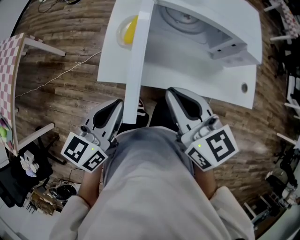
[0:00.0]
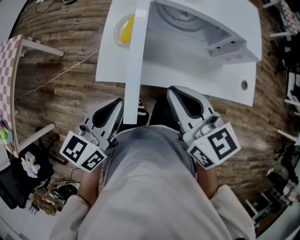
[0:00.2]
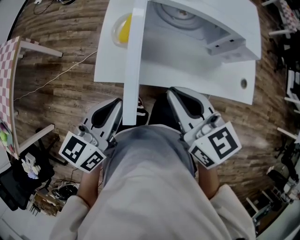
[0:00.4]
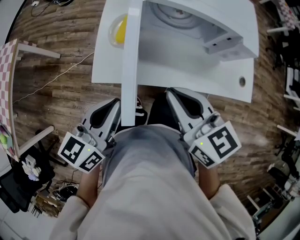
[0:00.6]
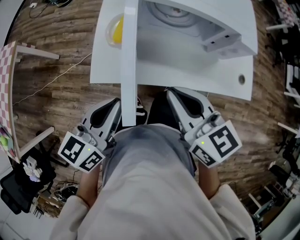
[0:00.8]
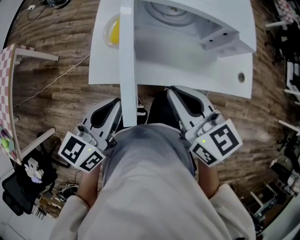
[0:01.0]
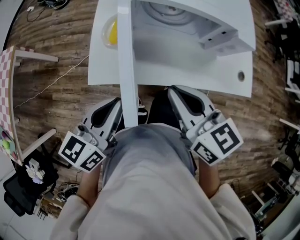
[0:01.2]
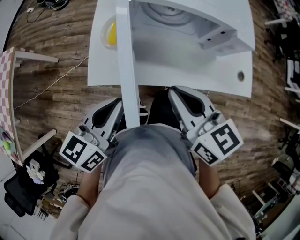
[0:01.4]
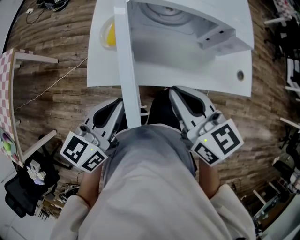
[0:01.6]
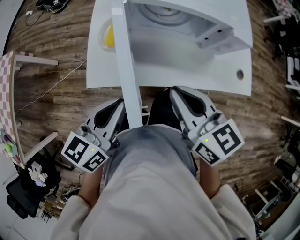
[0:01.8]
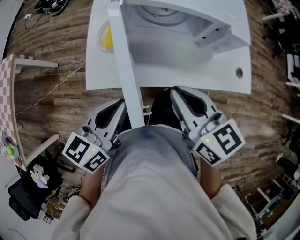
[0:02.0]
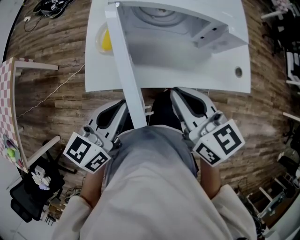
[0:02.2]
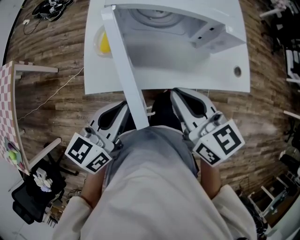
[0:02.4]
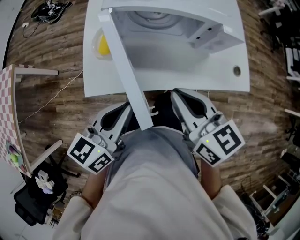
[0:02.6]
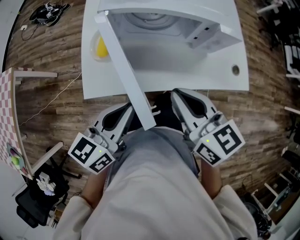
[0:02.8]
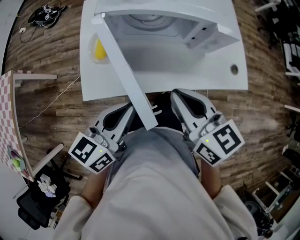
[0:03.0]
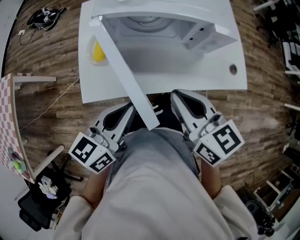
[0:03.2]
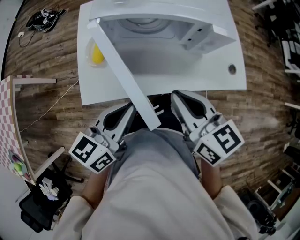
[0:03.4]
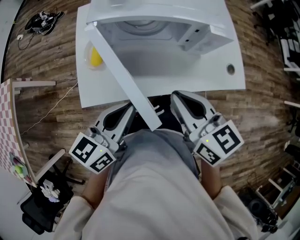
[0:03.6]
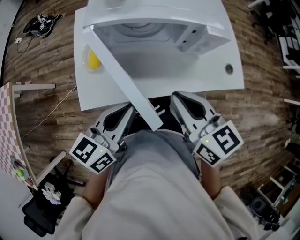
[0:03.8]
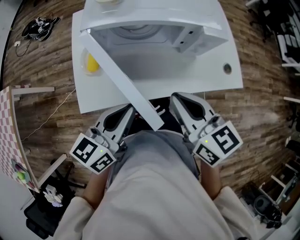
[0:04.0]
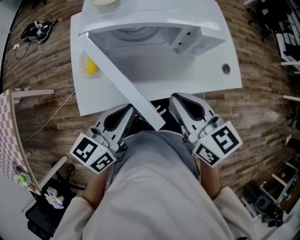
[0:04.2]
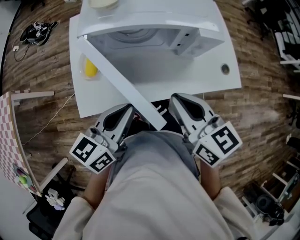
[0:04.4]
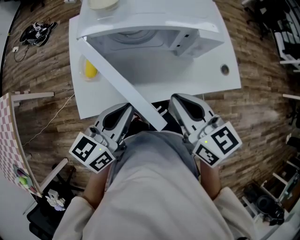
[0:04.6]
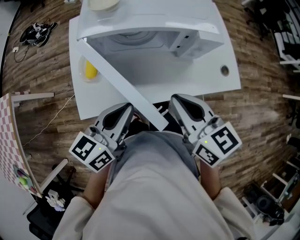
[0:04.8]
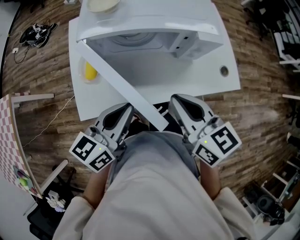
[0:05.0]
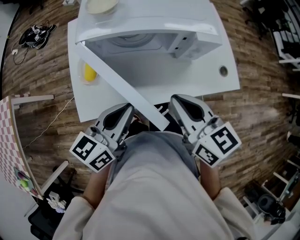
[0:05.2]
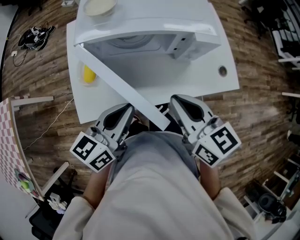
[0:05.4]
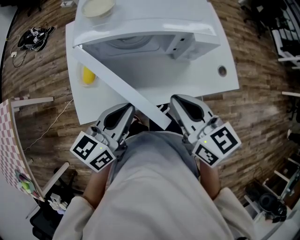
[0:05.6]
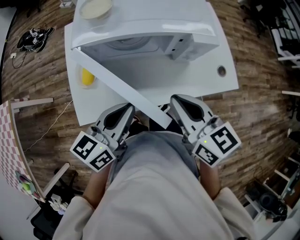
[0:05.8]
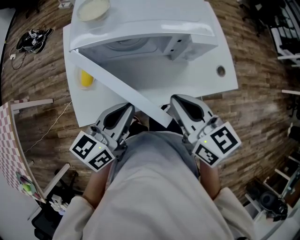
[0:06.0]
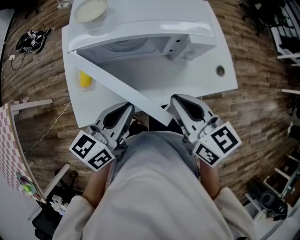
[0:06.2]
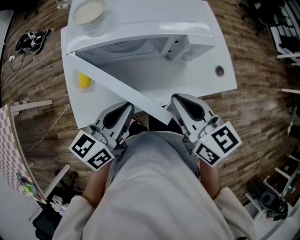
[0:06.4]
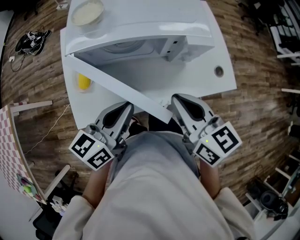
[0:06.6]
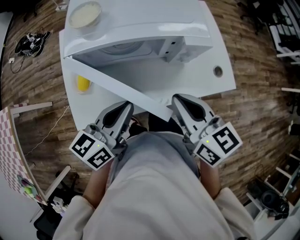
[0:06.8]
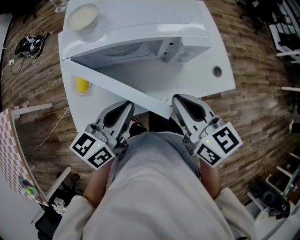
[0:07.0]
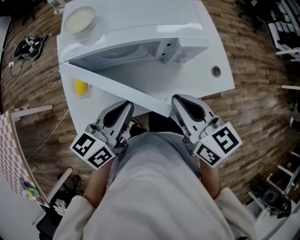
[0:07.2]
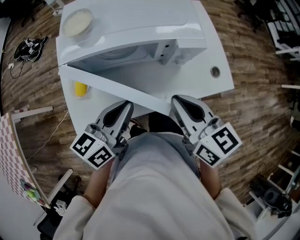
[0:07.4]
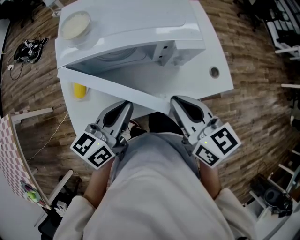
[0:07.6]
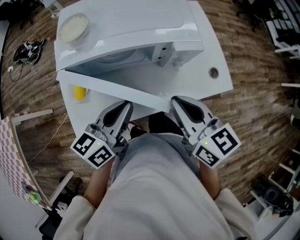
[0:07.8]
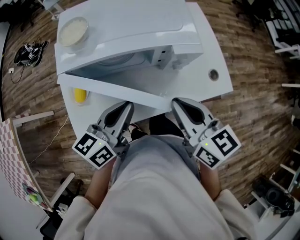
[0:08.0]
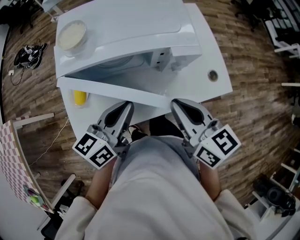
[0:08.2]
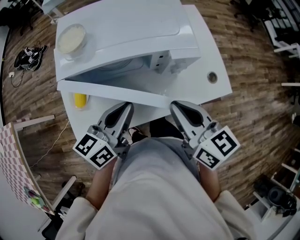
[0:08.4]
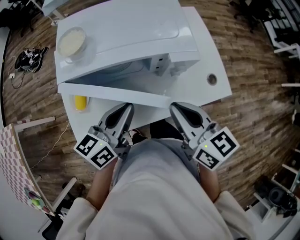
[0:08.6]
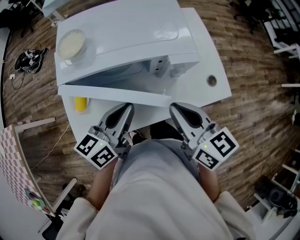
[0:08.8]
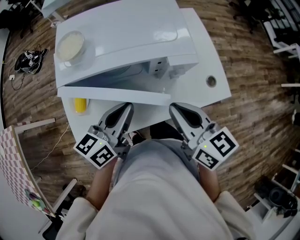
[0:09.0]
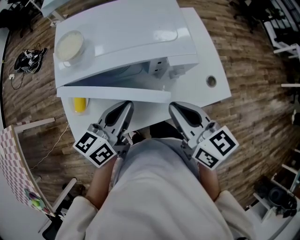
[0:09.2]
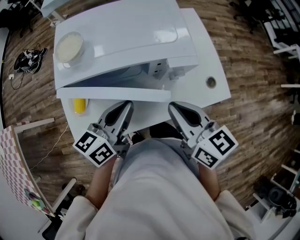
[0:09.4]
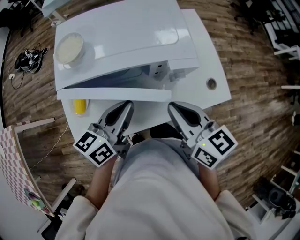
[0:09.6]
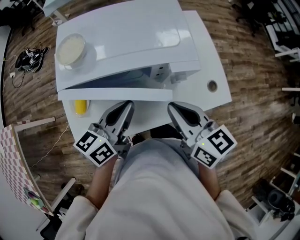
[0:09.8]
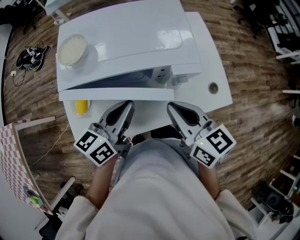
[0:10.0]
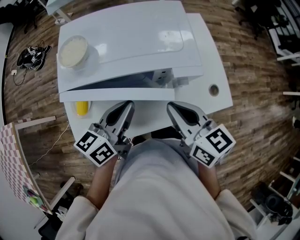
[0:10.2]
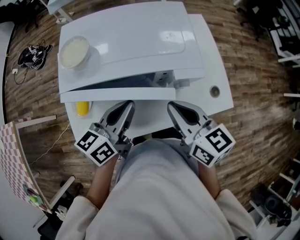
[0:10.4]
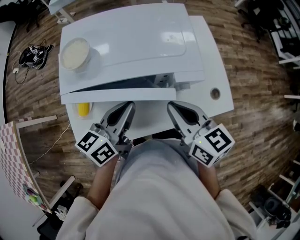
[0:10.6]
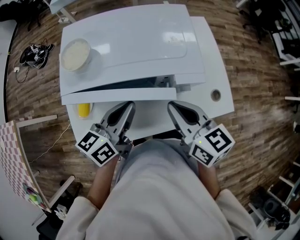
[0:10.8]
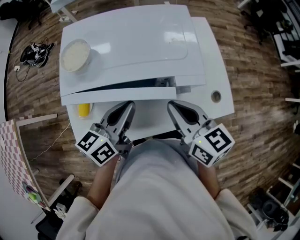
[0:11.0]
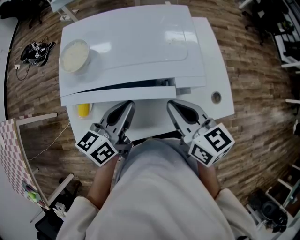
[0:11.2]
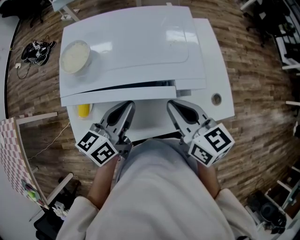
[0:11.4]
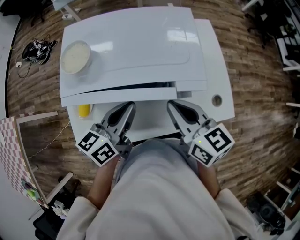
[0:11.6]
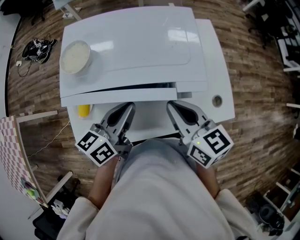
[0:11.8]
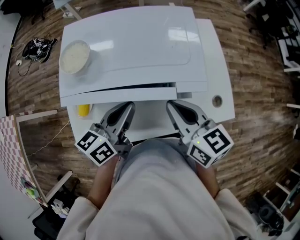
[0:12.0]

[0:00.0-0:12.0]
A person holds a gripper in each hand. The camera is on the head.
0:00.0 to 0:01.6: The right gripper heads to the right, covering roughly 5 cm.
0:01.6 to 0:03.0: The left gripper heads to the right, covering about 5 cm.
0:03.0 to 0:04.4: The grippers stay close to where they were, moving slightly.
0:04.4 to 0:06.0: The grippers make only small movements.
0:06.0 to 0:07.6: The left gripper changes place by some 5 cm.
0:07.6 to 0:09.0: There are only small adjustments of the grippers.
0:09.0 to 0:10.4: The grippers make only small movements.
0:10.4 to 0:12.0: There are only small adjustments of the grippers.

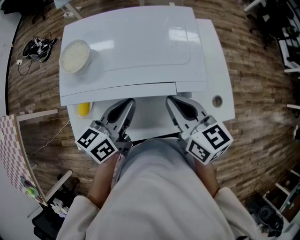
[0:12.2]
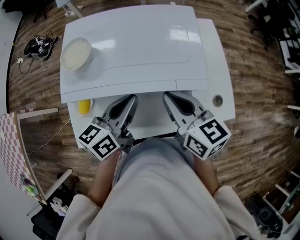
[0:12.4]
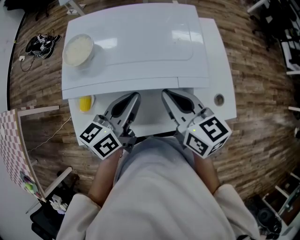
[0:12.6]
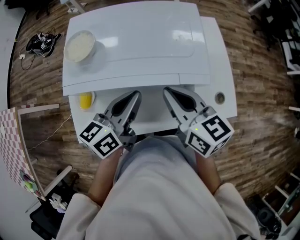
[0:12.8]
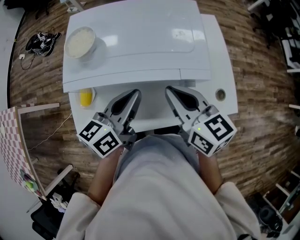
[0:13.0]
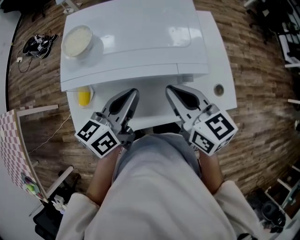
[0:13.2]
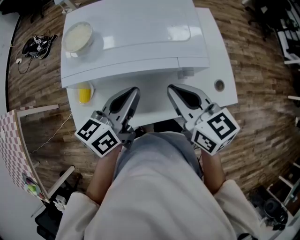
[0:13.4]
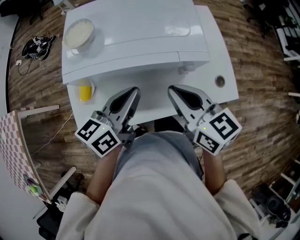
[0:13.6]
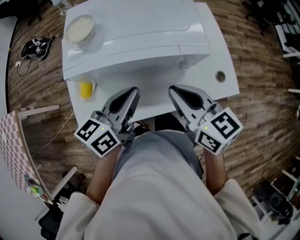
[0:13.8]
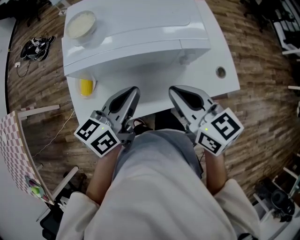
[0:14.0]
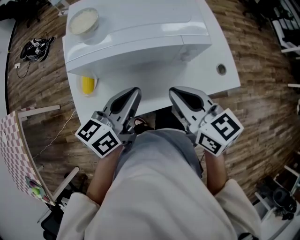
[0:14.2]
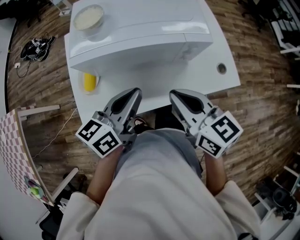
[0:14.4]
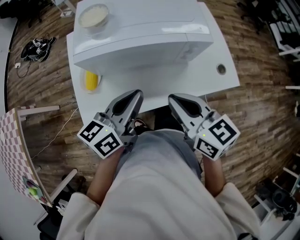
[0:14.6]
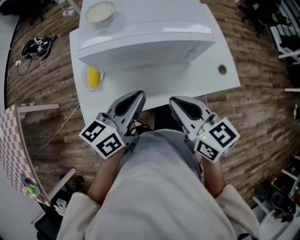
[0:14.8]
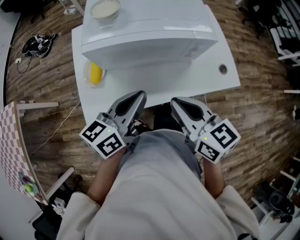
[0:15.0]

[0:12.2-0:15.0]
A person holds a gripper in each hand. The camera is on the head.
0:12.2 to 0:13.6: The left gripper ends up about 5 cm from where it was. The right gripper travels backward by some 5 cm.
0:13.6 to 0:15.0: The left gripper travels backward by roughly 10 cm; the right gripper heads backward and to the left, covering some 15 cm.

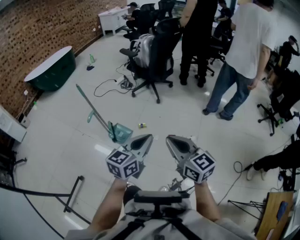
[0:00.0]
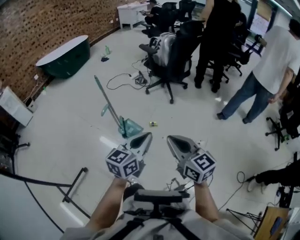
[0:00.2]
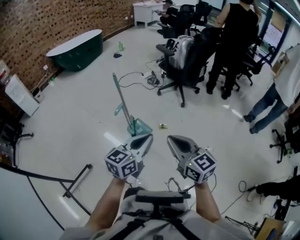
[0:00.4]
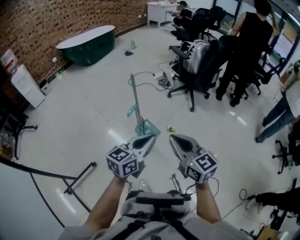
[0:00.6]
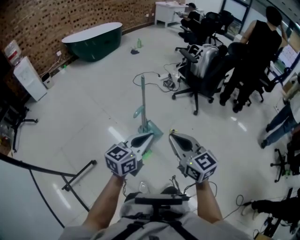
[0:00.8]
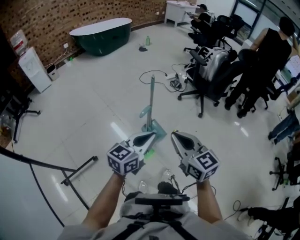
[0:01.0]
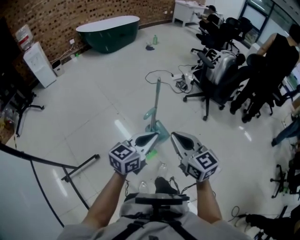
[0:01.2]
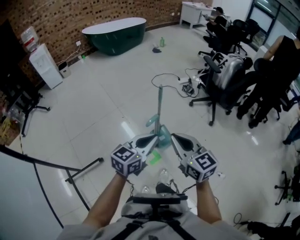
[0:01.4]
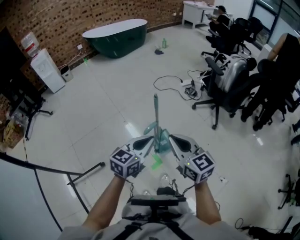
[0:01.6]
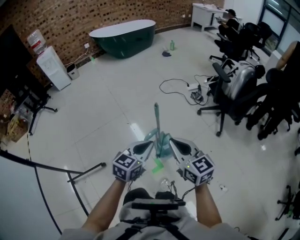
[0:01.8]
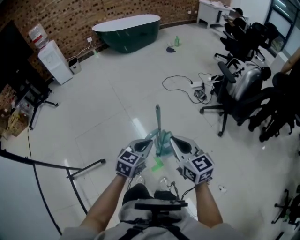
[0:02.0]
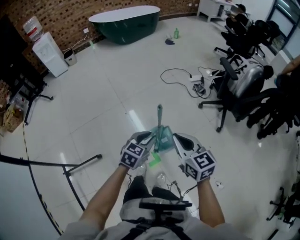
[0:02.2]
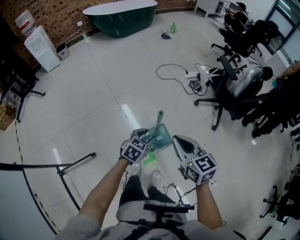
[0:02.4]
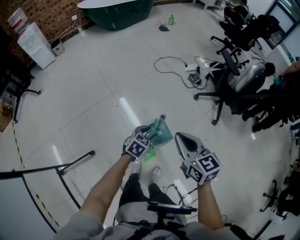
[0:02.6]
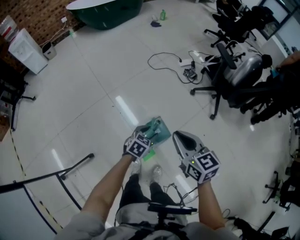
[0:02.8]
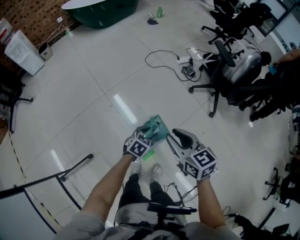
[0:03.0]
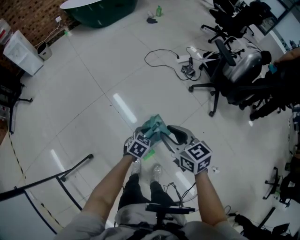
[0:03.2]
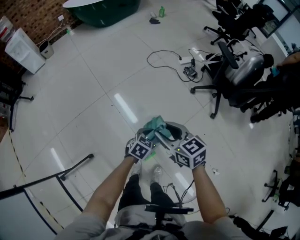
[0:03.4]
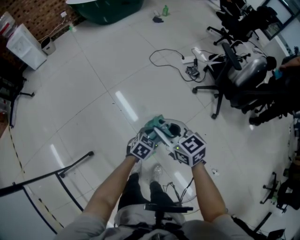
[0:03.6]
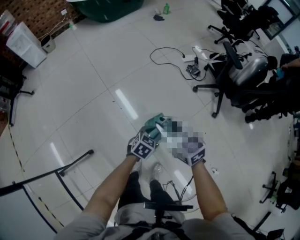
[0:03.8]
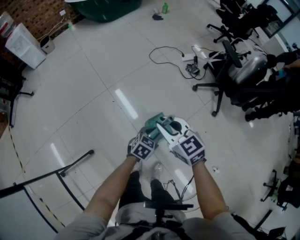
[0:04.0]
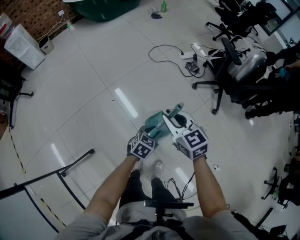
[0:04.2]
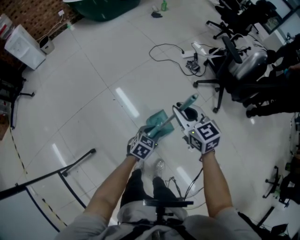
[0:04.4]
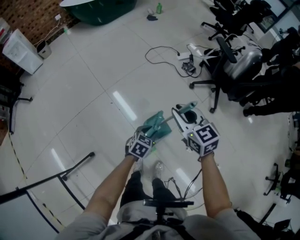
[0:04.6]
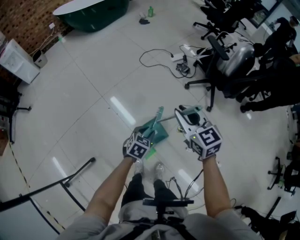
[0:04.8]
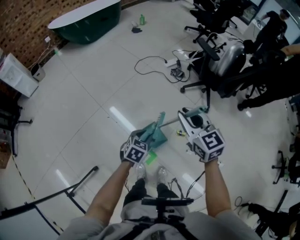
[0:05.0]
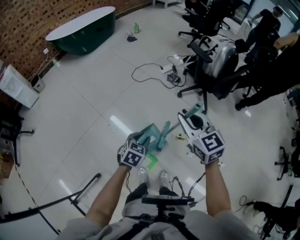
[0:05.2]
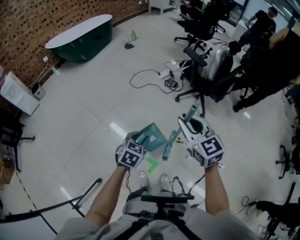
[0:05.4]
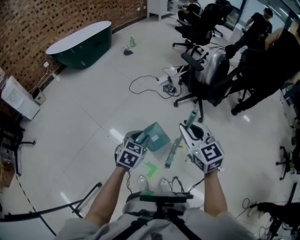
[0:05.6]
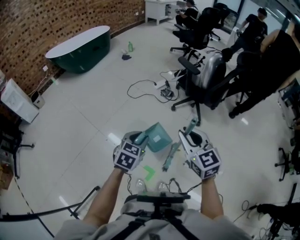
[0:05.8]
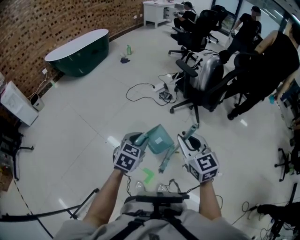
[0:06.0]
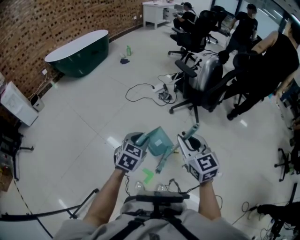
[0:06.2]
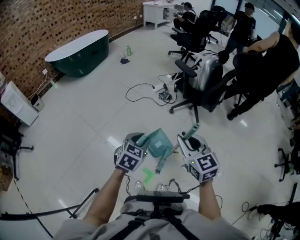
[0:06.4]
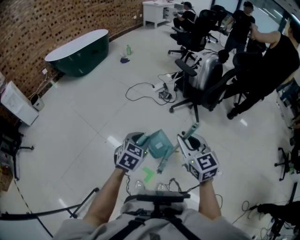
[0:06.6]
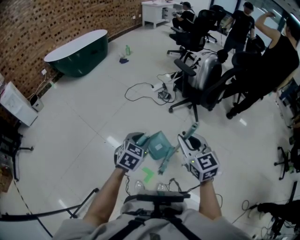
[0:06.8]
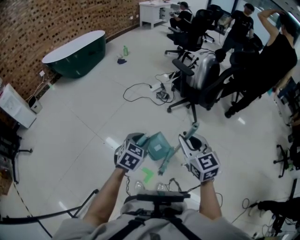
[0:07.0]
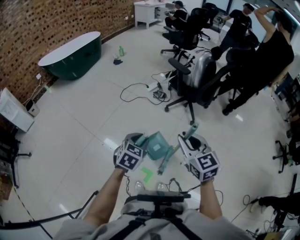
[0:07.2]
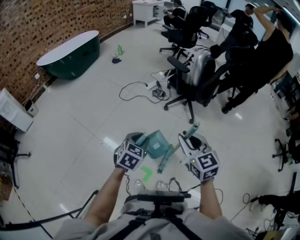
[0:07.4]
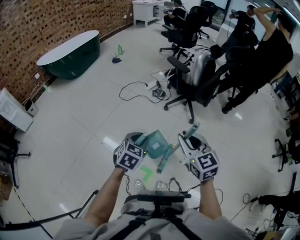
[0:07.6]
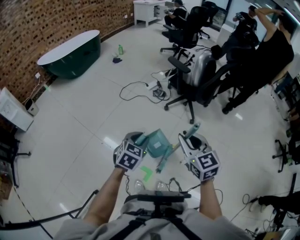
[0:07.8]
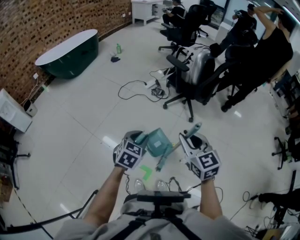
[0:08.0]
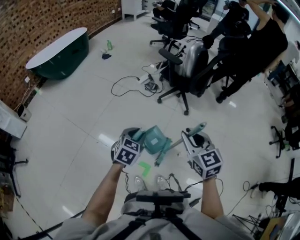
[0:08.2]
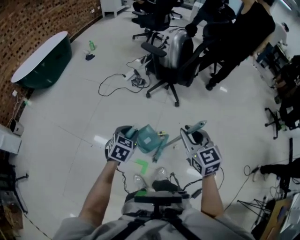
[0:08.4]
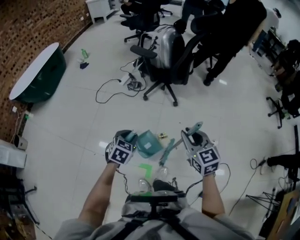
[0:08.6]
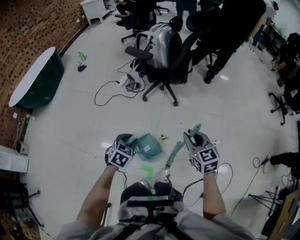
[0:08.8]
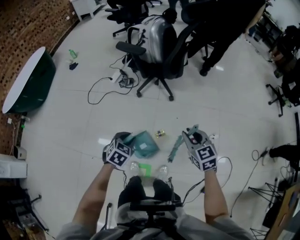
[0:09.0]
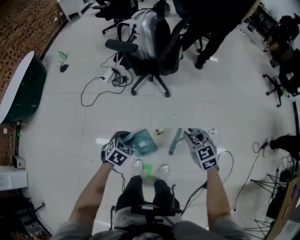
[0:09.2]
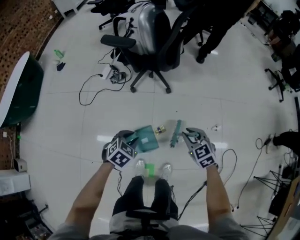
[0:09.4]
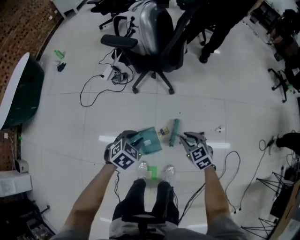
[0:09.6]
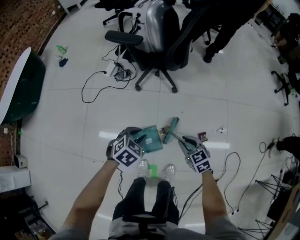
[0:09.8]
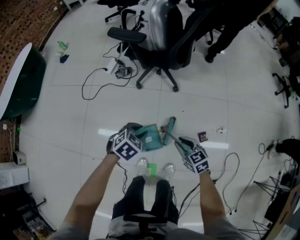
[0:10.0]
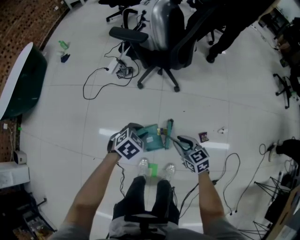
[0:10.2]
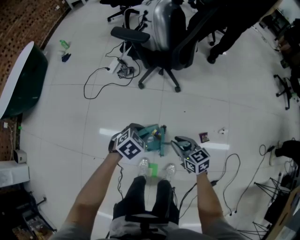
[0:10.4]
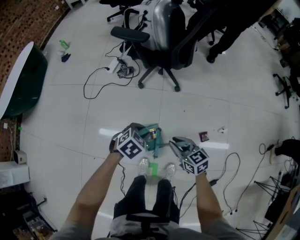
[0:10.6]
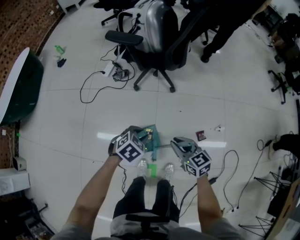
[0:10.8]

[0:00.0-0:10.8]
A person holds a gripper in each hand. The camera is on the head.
0:00.0 to 0:01.6: The right gripper moves some 40 cm, and rotates roughly 30 degrees; the left gripper ends up some 40 cm from where it was, and rotates about 30 degrees.
0:01.6 to 0:03.0: The right gripper travels forward and downward by some 20 cm, and opens up, while the left gripper heads downward and forward, covering some 30 cm, tips its fingers downward by approximately 30 degrees, and opens up.
0:03.0 to 0:04.6: The right gripper is displaced forward by some 10 cm.
0:04.6 to 0:06.2: The left gripper shifts approximately 20 cm upward, and rotates some 20 degrees. Meanwhile the right gripper is displaced to the right, upward and backward by about 20 cm, and changes its angle by about 20 degrees.
0:06.2 to 0:07.8: The grippers stay close to where they were, moving slightly.
0:07.8 to 0:09.2: The right gripper moves roughly 30 cm, and changes its angle by approximately 30 degrees; the left gripper shifts by about 25 cm, and swivels approximately 40 degrees.
0:09.2 to 0:10.8: The left gripper shifts by roughly 5 cm, while the right gripper heads to the left and downward, covering roughly 10 cm, and turns by about 20 degrees.
